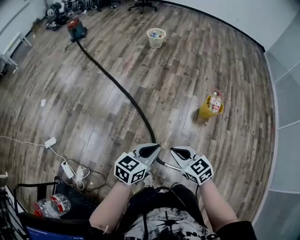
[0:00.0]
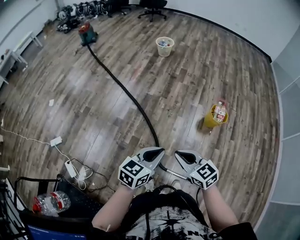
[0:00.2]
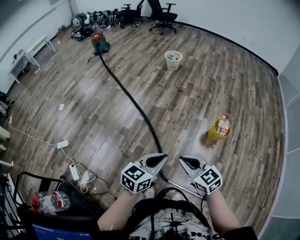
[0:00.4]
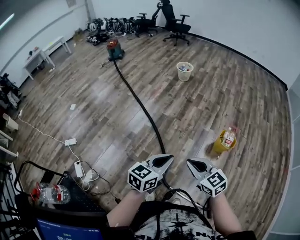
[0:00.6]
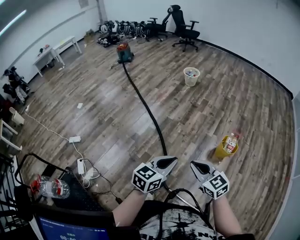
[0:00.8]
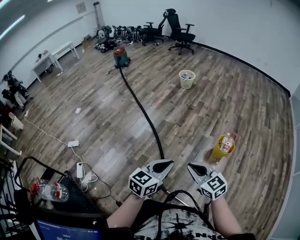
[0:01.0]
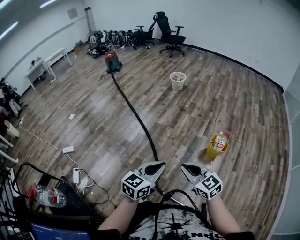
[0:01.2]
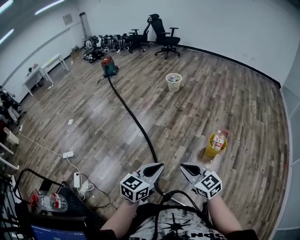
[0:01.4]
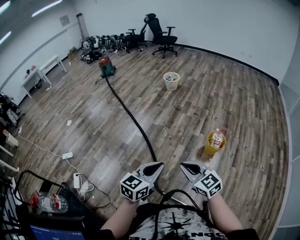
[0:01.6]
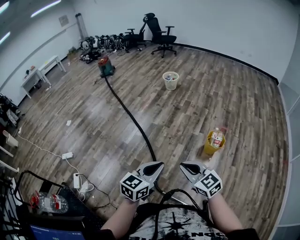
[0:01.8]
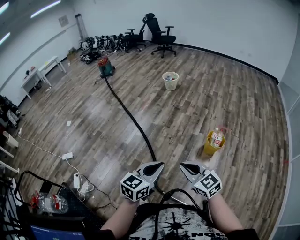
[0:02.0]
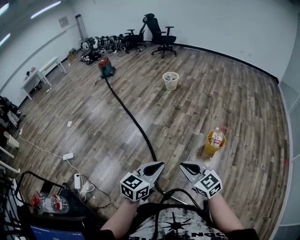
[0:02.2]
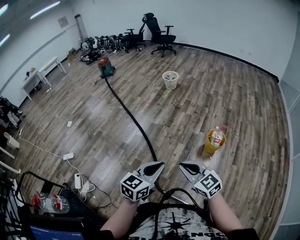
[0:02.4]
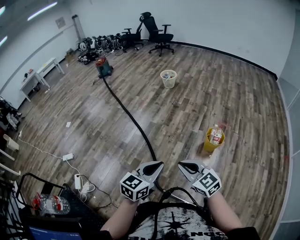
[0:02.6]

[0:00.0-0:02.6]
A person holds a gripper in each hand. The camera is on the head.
0:00.0 to 0:01.2: The left gripper goes approximately 15 cm to the right, upward and backward; the right gripper moves to the right and upward, approximately 20 cm.
0:01.2 to 0:02.6: The grippers move only a little.

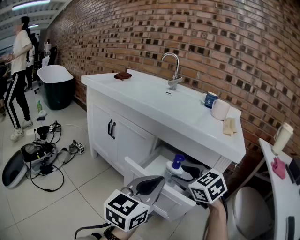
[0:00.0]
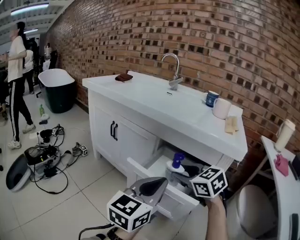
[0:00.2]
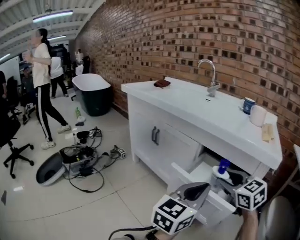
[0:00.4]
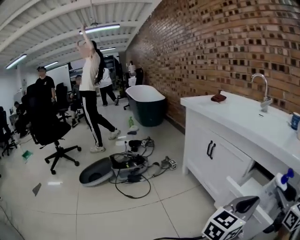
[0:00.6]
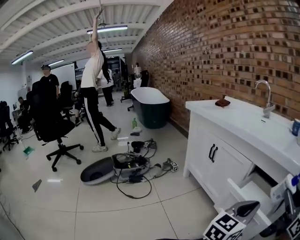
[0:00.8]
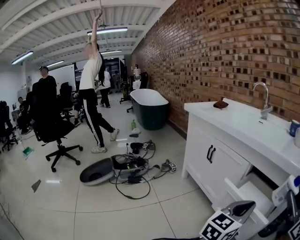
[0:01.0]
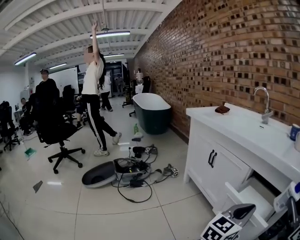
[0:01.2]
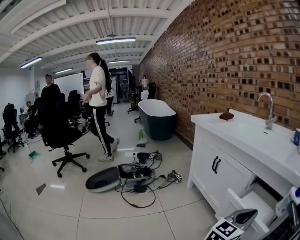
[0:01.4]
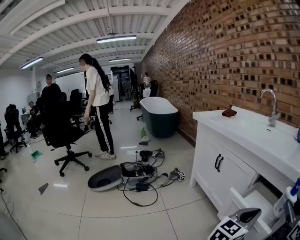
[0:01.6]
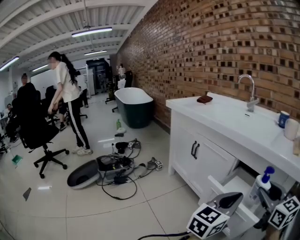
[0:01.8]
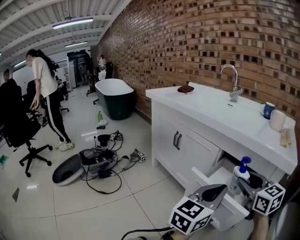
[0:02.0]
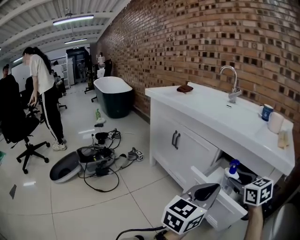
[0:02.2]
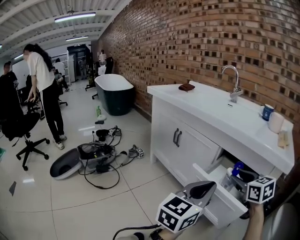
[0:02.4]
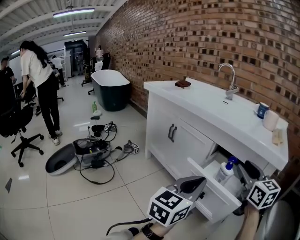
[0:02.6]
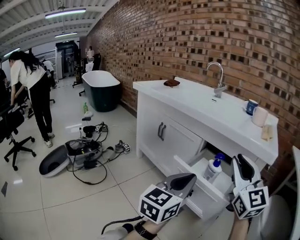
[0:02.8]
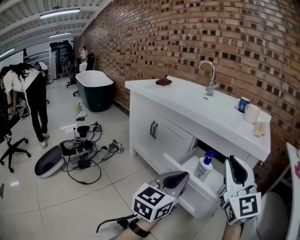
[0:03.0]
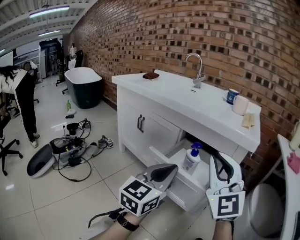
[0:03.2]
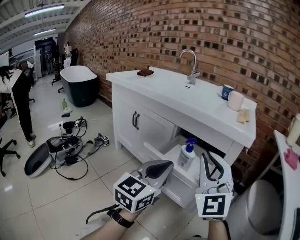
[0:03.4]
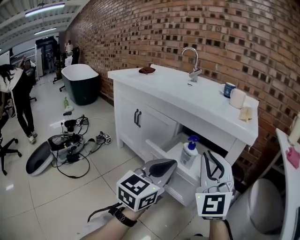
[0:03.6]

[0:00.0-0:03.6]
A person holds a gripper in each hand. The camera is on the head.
0:00.0 to 0:01.8: The right gripper shifts roughly 10 cm upward, and turns by approximately 30 degrees.
0:01.8 to 0:03.6: The left gripper ends up roughly 5 cm from where it was. The right gripper goes up and down, about 15 cm each way, reversing 2 times, turns by about 40 degrees, and closes its fingers.

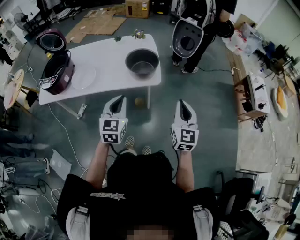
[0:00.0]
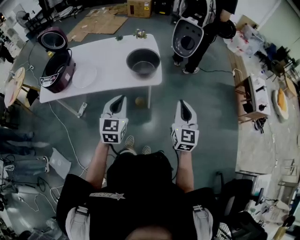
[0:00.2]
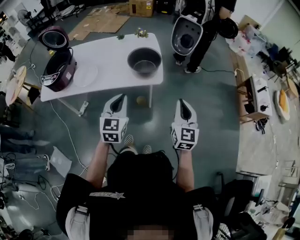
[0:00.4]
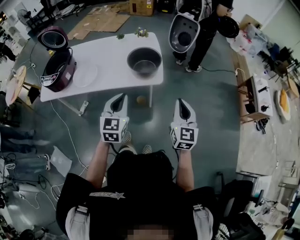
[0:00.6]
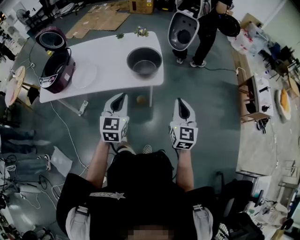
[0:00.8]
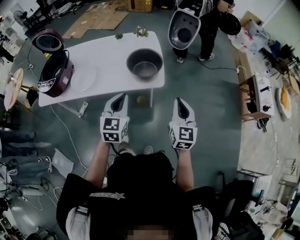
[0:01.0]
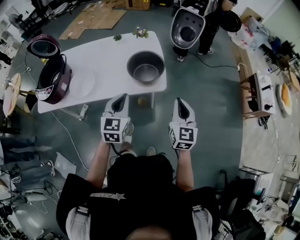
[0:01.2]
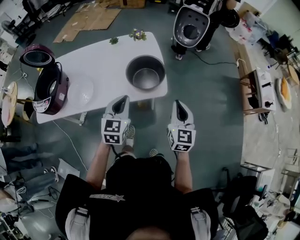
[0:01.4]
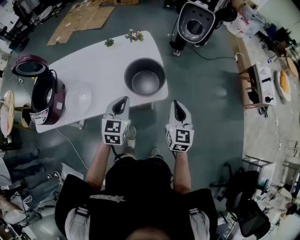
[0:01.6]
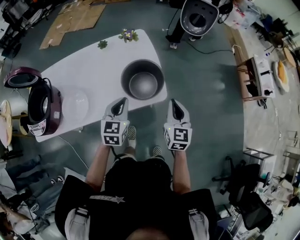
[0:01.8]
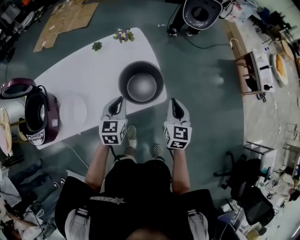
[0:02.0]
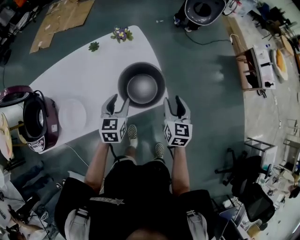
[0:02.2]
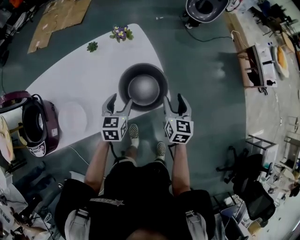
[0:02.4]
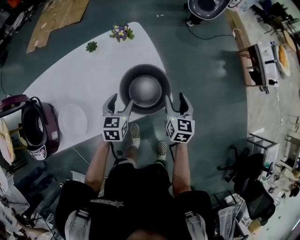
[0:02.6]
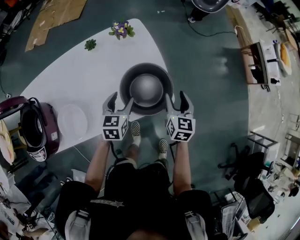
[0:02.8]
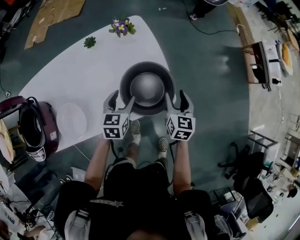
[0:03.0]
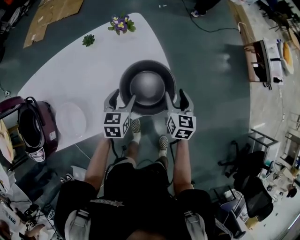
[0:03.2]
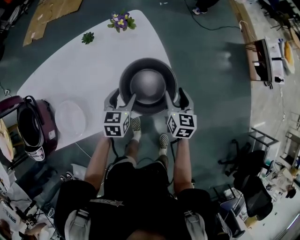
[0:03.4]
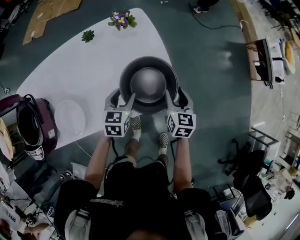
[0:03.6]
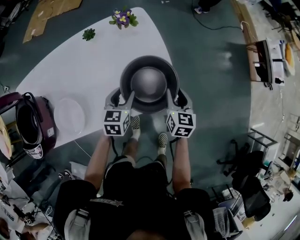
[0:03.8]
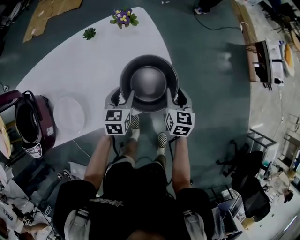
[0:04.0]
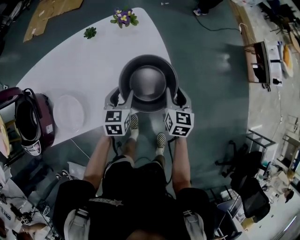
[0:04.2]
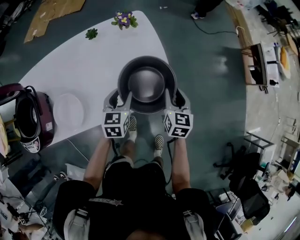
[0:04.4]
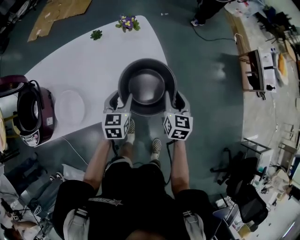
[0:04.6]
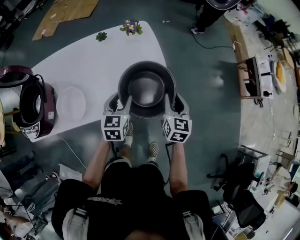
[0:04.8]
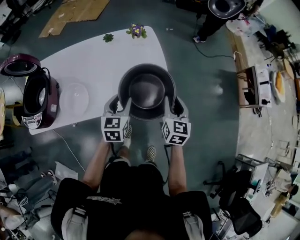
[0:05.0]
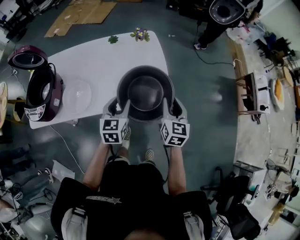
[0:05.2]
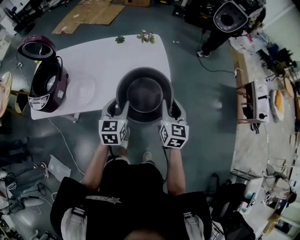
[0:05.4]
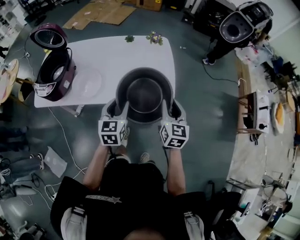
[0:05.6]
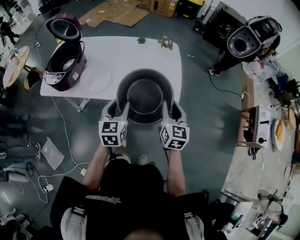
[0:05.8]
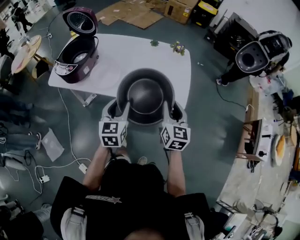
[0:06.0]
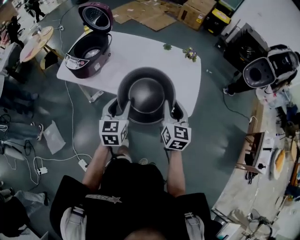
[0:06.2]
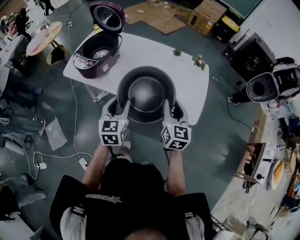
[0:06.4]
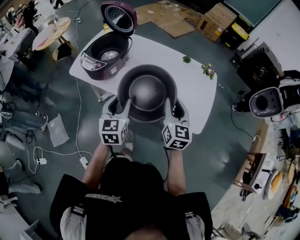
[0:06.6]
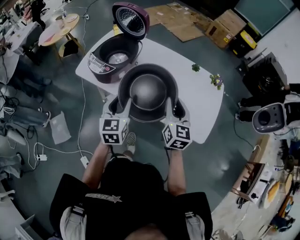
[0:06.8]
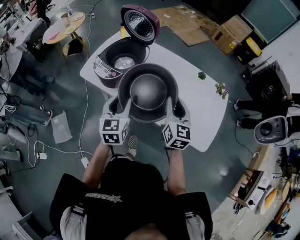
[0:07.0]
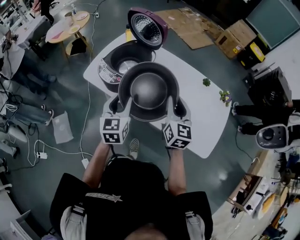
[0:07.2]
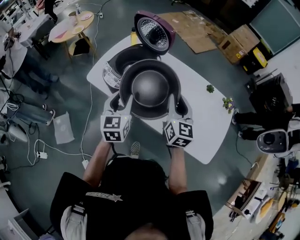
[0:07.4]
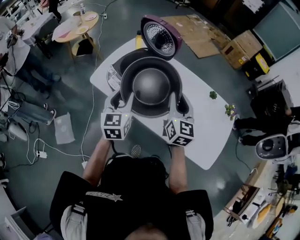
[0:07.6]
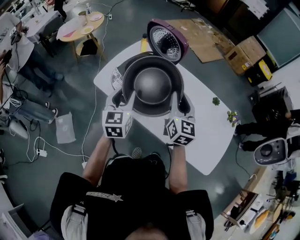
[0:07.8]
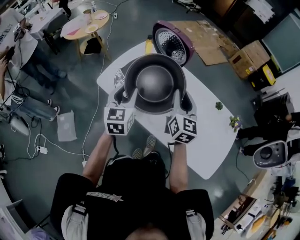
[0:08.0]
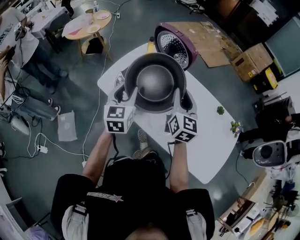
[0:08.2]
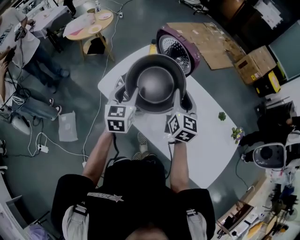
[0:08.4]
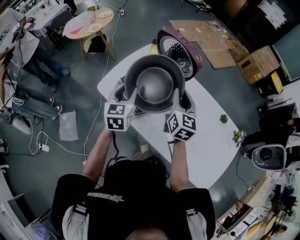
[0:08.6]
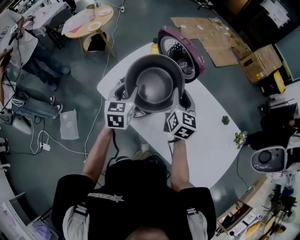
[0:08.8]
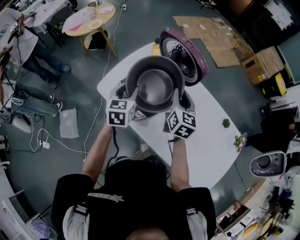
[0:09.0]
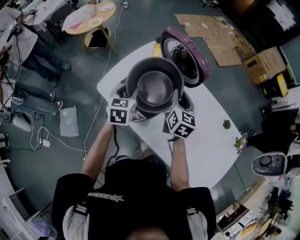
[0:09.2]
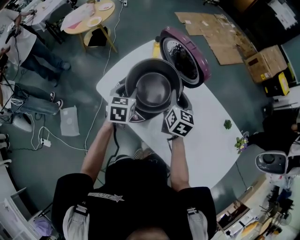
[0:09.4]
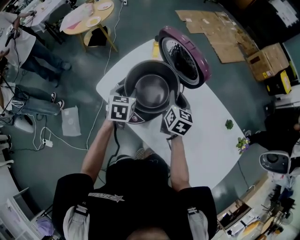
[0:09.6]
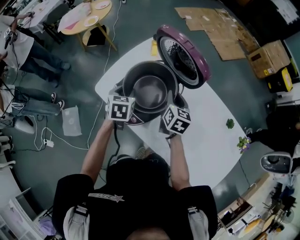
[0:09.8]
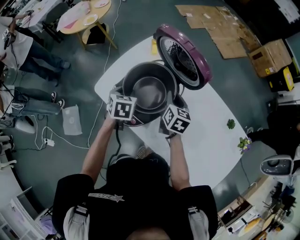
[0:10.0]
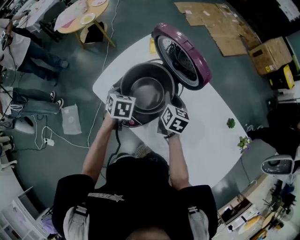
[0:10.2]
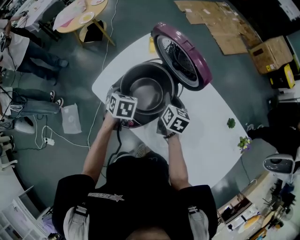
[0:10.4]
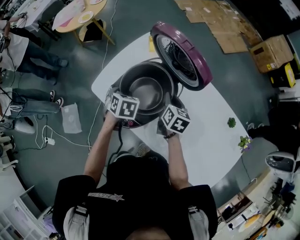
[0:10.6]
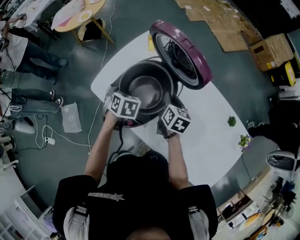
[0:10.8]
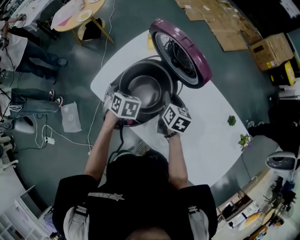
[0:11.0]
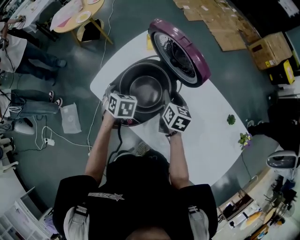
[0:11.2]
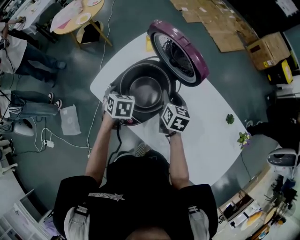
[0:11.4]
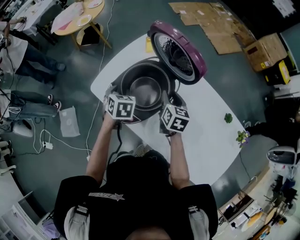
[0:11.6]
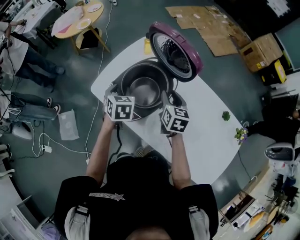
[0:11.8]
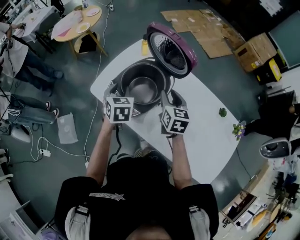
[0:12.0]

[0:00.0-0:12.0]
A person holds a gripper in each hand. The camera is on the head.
0:00.0 to 0:01.6: The right gripper is displaced forward and to the left by roughly 20 cm, while the left gripper moves forward, approximately 20 cm.
0:01.6 to 0:03.0: The left gripper heads forward and downward, covering about 20 cm, and opens, while the right gripper is displaced downward and forward by about 20 cm, swivels approximately 20 degrees, and opens its fingers.
0:03.0 to 0:04.4: The right gripper closes up.
0:04.4 to 0:06.0: The right gripper moves roughly 25 cm, and rotates about 30 degrees, while the left gripper moves approximately 30 cm, and turns by about 30 degrees.
0:06.0 to 0:07.6: The right gripper goes some 40 cm forward and to the left, and changes its angle by some 20 degrees; the left gripper heads to the left and forward, covering approximately 40 cm, and turns by approximately 30 degrees.
0:07.6 to 0:09.0: The grippers both shift forward by some 20 cm.
0:09.0 to 0:10.4: Both grippers travel together downward, about 10 cm. The left gripper changes its angle by approximately 30 degrees; the right gripper changes its angle by roughly 20 degrees.
0:10.4 to 0:12.0: The right gripper heads upward and backward, covering approximately 10 cm; the left gripper travels upward by some 10 cm.

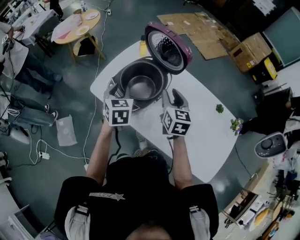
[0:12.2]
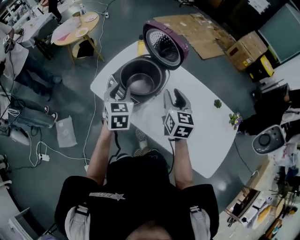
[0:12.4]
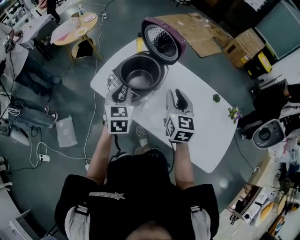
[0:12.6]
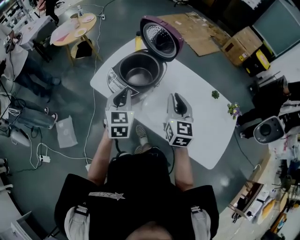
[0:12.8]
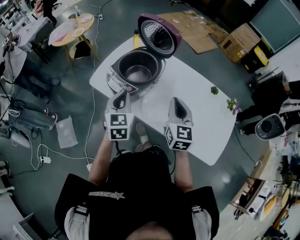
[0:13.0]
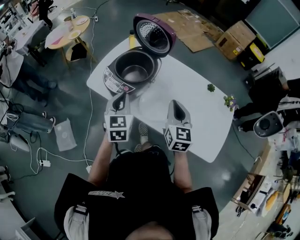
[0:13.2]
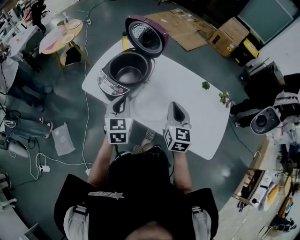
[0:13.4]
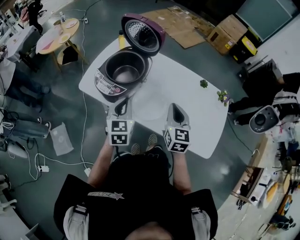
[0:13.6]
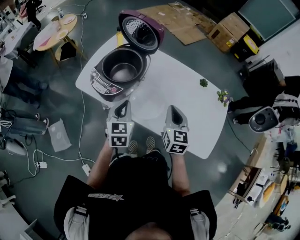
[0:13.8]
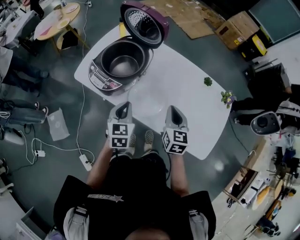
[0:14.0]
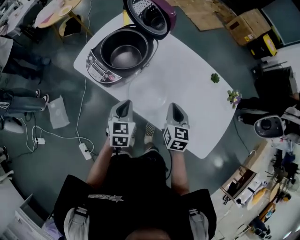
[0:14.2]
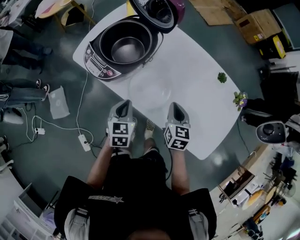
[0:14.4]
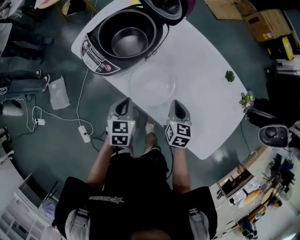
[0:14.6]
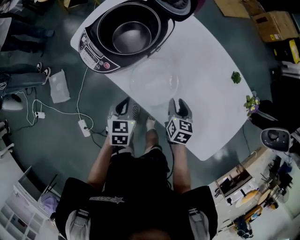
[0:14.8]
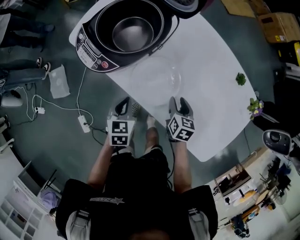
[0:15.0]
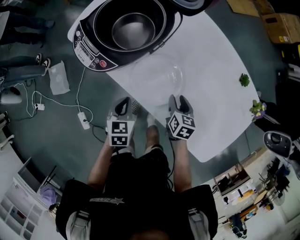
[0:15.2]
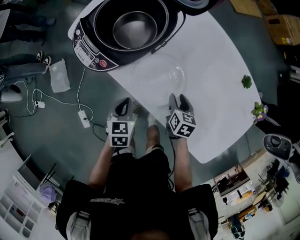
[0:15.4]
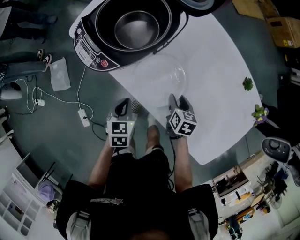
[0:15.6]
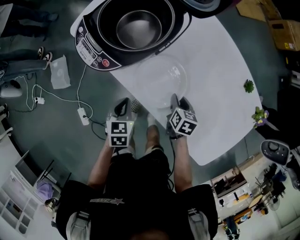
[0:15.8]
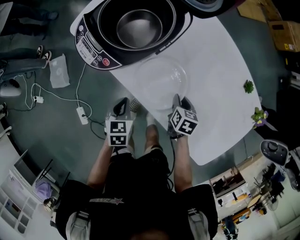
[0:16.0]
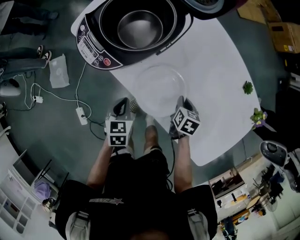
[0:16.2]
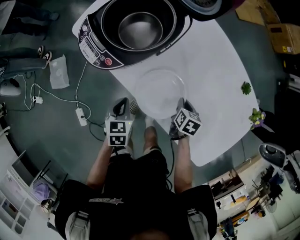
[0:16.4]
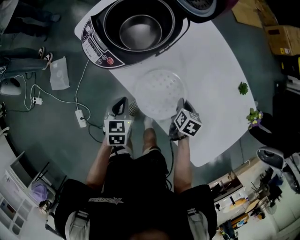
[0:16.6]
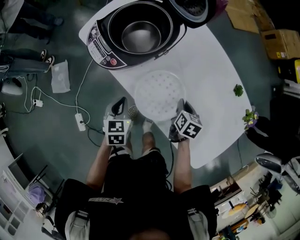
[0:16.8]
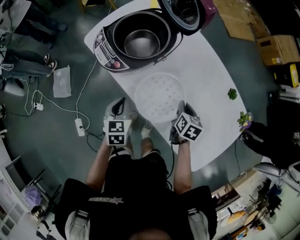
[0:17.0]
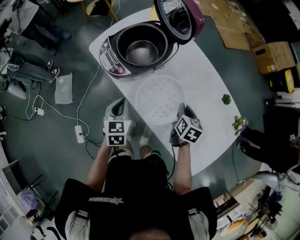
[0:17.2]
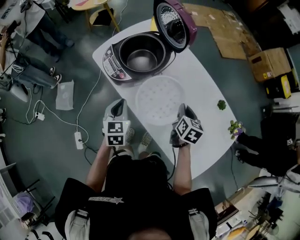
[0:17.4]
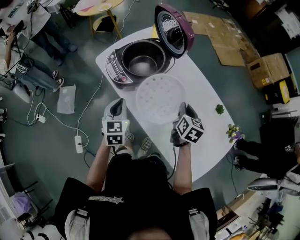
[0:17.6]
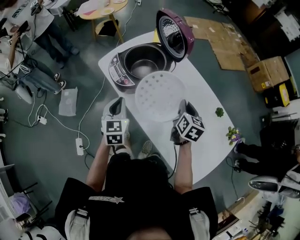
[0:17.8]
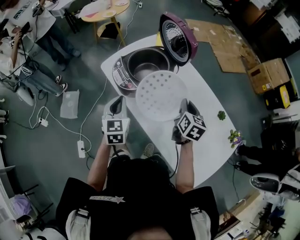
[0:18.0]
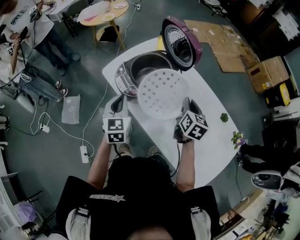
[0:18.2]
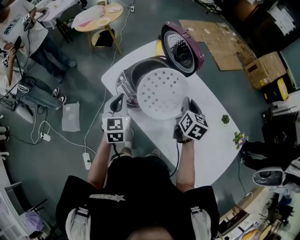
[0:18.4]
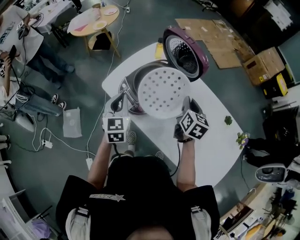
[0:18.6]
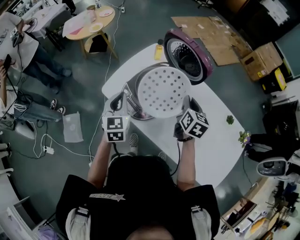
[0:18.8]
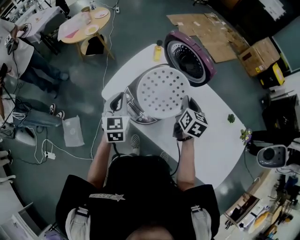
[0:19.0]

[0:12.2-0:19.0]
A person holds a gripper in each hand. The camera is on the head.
0:12.2 to 0:13.6: Both grippers move backward and to the right, roughly 20 cm. The right gripper closes. The left gripper swivels some 20 degrees, and closes up.
0:13.6 to 0:15.0: The two grippers go about 25 cm downward. The left gripper changes its angle by about 30 degrees. The right gripper rotates some 40 degrees, and opens up.
0:15.0 to 0:16.2: The right gripper moves approximately 5 cm, and closes.
0:16.2 to 0:17.6: Both grippers move upward, some 20 cm. The left gripper changes its angle by approximately 30 degrees, while the right gripper turns by roughly 30 degrees.
0:17.6 to 0:19.0: Both grippers move forward and to the left, approximately 20 cm.
